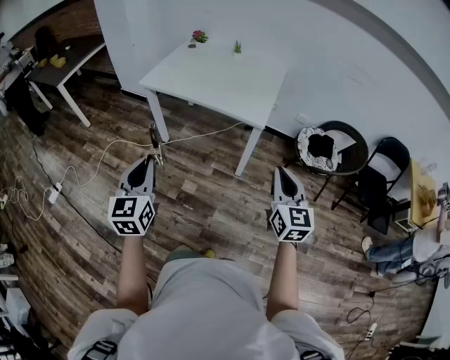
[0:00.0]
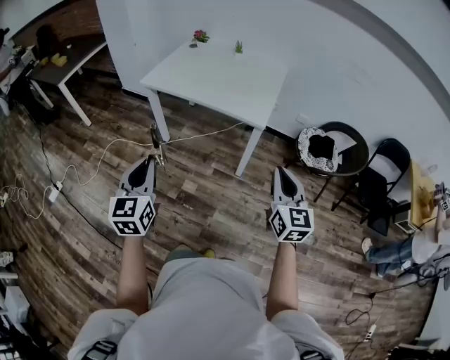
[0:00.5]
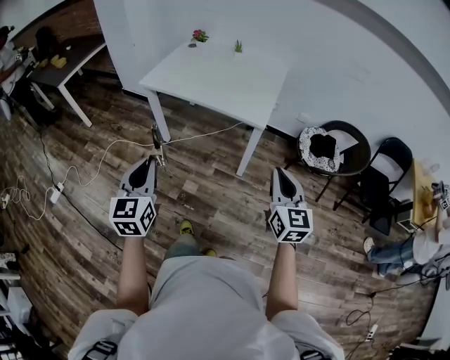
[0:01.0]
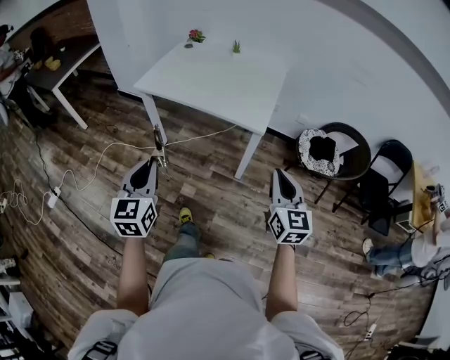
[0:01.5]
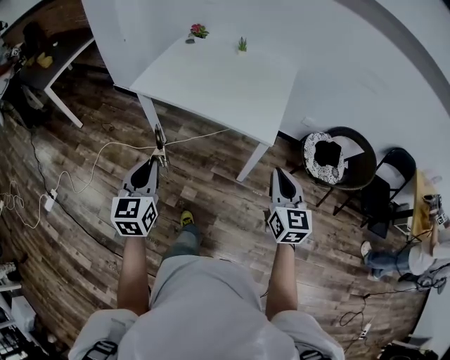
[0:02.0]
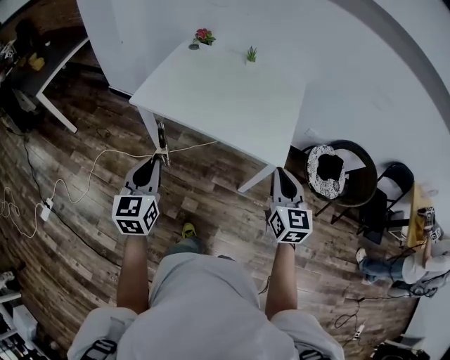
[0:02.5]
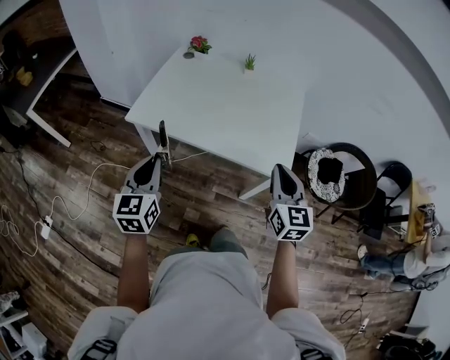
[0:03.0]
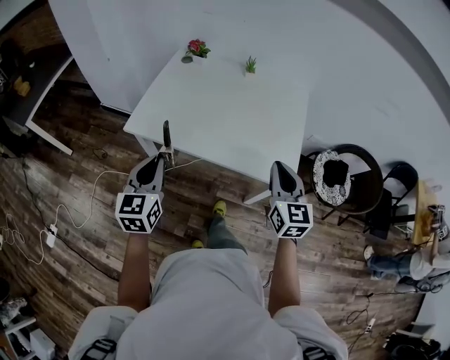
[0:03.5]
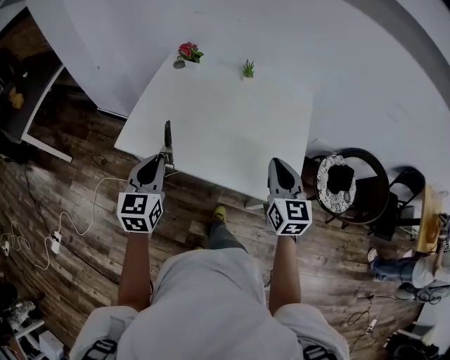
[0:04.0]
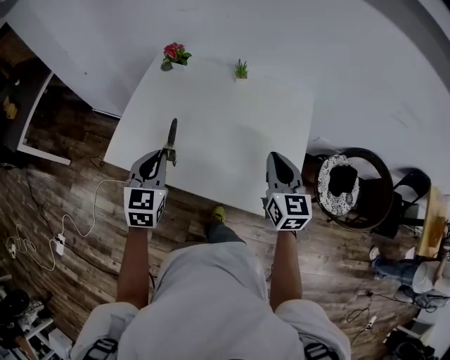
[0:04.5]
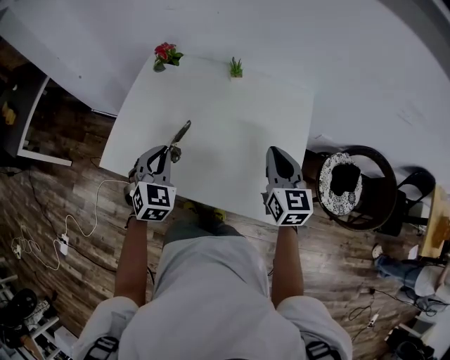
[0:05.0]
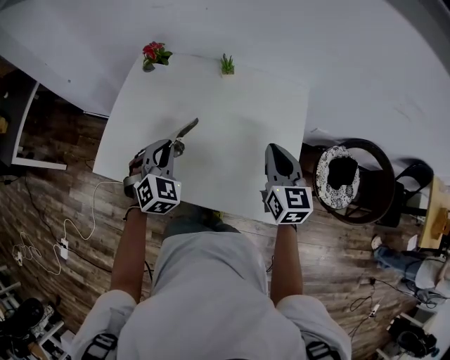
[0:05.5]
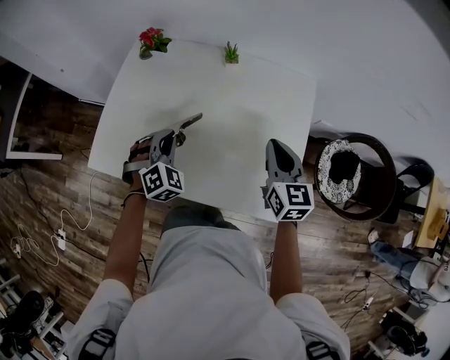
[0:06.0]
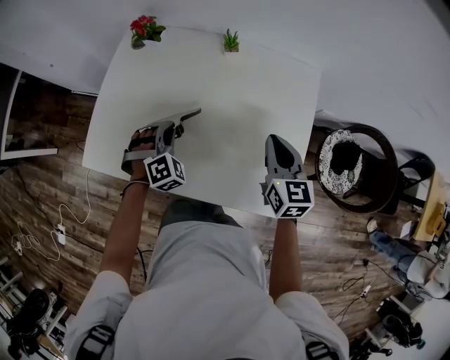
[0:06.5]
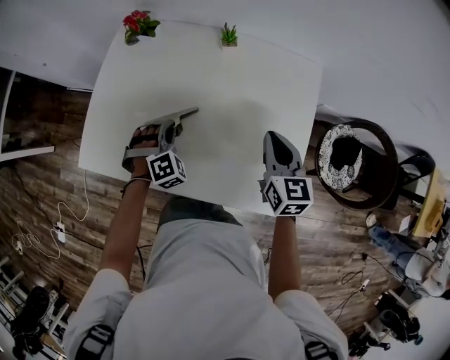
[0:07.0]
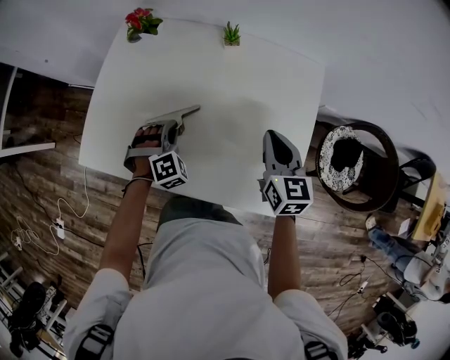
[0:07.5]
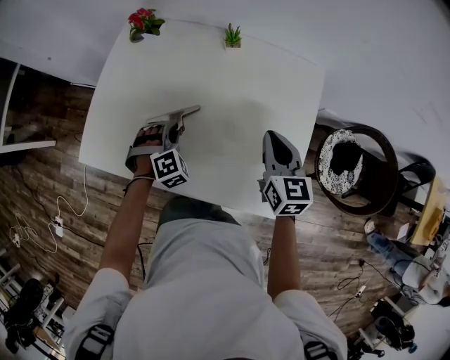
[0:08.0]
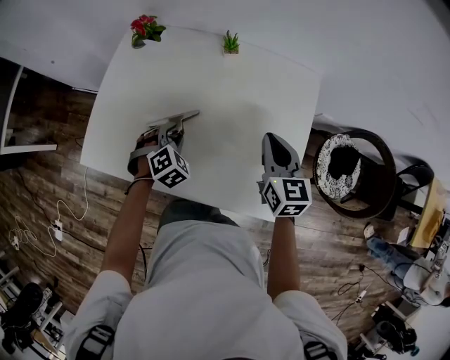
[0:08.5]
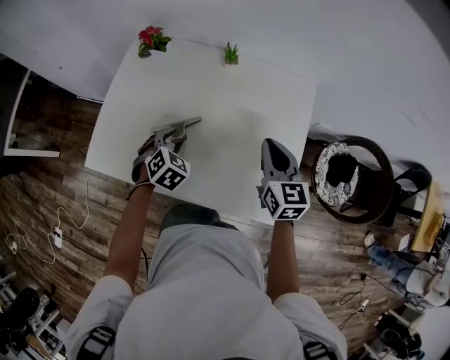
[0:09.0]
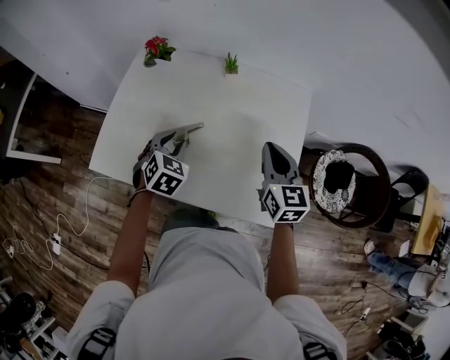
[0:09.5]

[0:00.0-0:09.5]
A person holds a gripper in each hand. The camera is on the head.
0:00.0 to 0:02.0: The grippers both shift forward by approximately 15 cm.
0:02.0 to 0:04.0: The two grippers go about 40 cm forward.
0:04.0 to 0:05.5: The right gripper goes roughly 15 cm forward and to the right. Meanwhile the left gripper travels forward, to the right and downward by approximately 25 cm, and rotates around the line of its fingers by approximately 40 degrees, clockwise from behind.
0:05.5 to 0:07.5: The right gripper moves downward, roughly 5 cm. The left gripper travels downward by about 15 cm, and swivels some 30 degrees.
0:07.5 to 0:09.5: The left gripper moves upward, some 10 cm, swivels some 40 degrees, and opens its fingers, while the right gripper shifts roughly 5 cm upward.

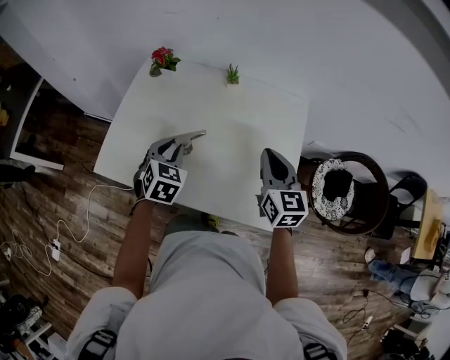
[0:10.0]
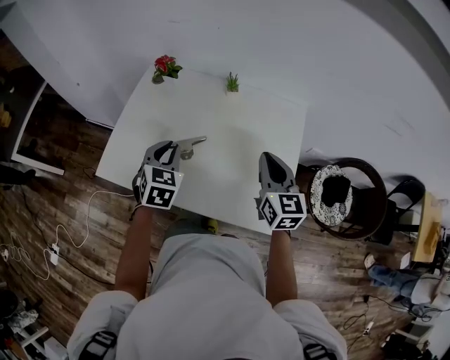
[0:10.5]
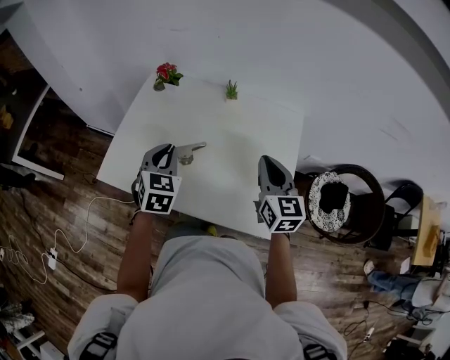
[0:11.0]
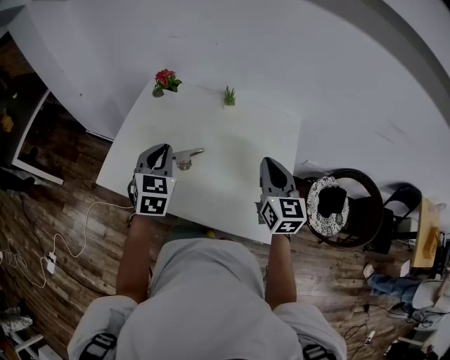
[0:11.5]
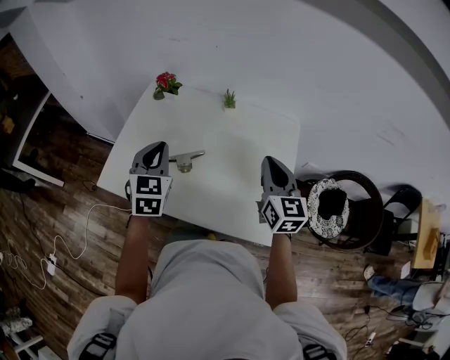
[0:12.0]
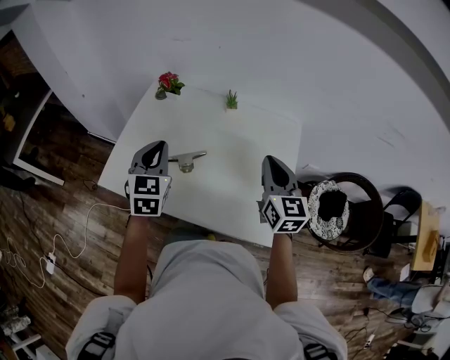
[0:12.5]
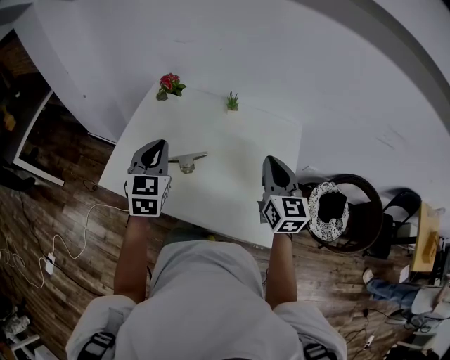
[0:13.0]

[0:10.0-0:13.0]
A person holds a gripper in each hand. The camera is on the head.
0:10.0 to 0:11.5: The left gripper shifts roughly 10 cm upward.
0:11.5 to 0:13.0: The grippers move only a little.

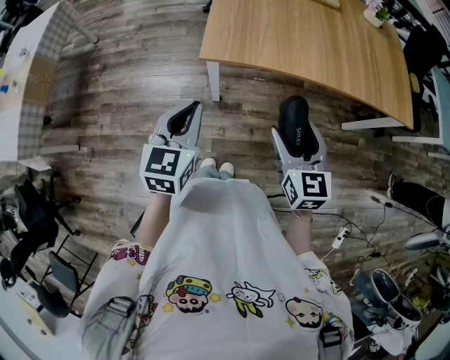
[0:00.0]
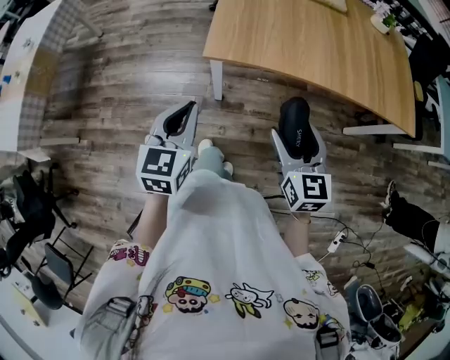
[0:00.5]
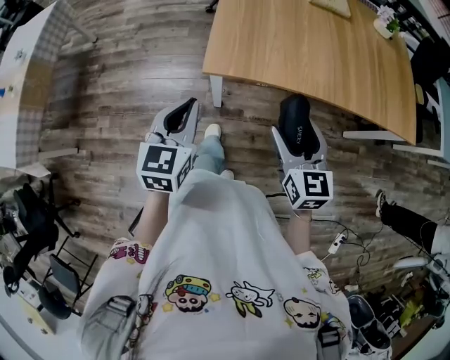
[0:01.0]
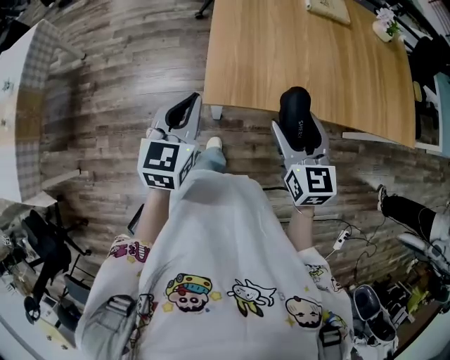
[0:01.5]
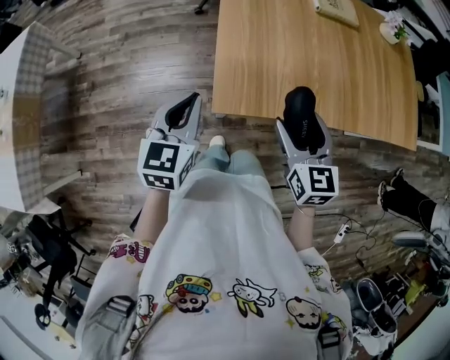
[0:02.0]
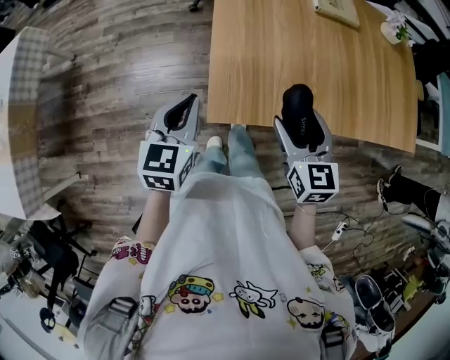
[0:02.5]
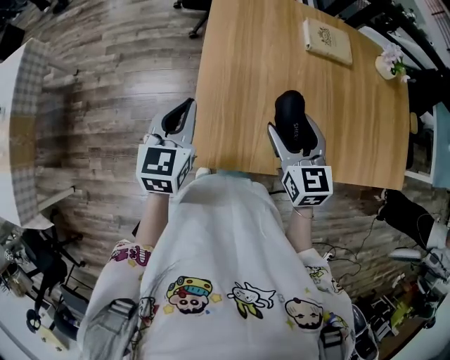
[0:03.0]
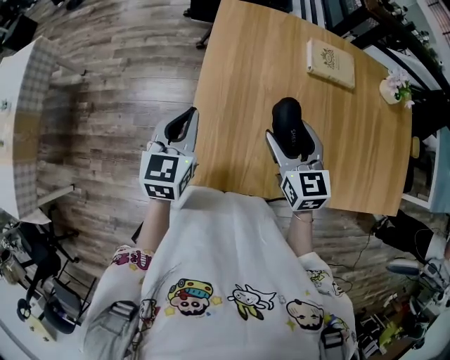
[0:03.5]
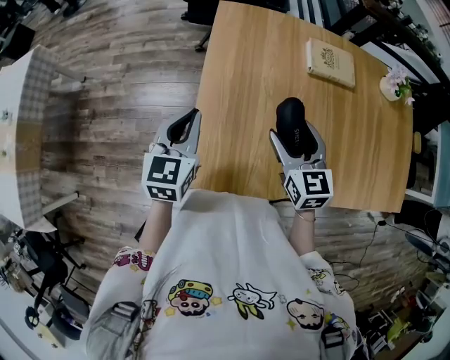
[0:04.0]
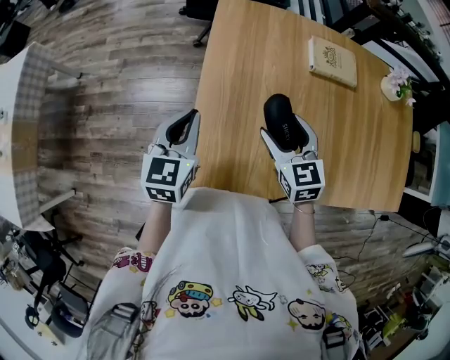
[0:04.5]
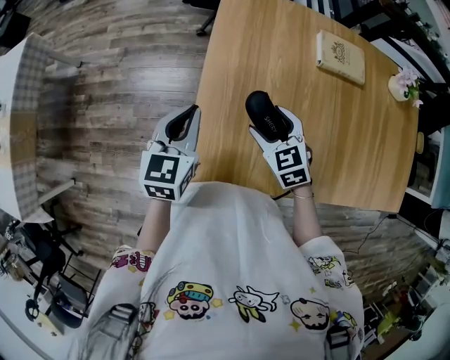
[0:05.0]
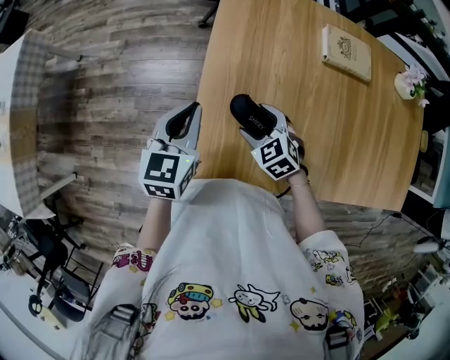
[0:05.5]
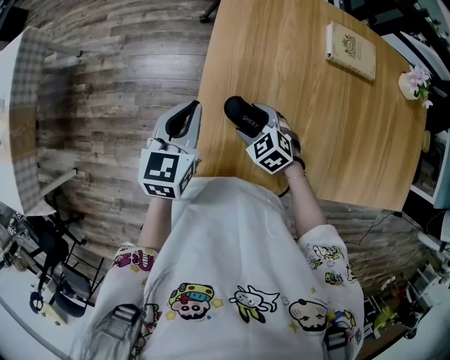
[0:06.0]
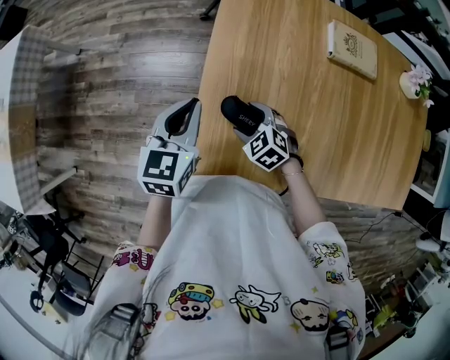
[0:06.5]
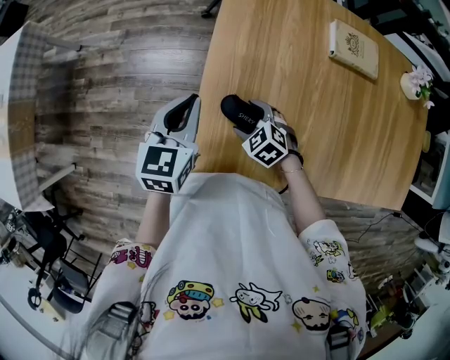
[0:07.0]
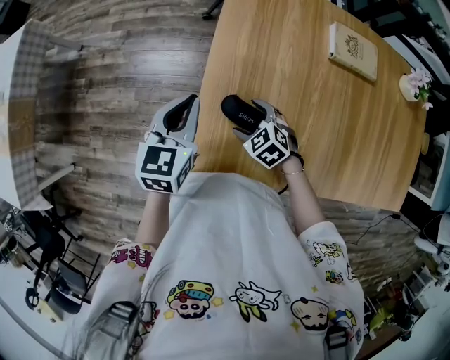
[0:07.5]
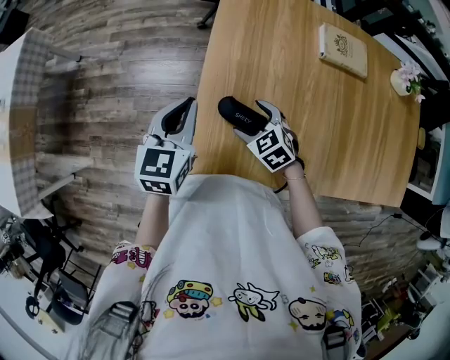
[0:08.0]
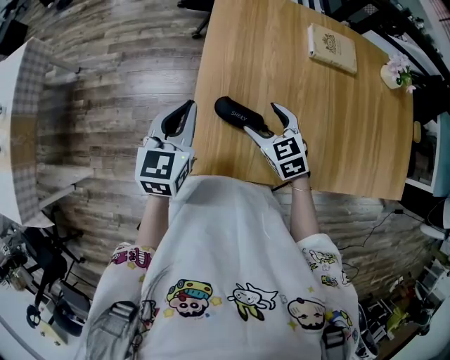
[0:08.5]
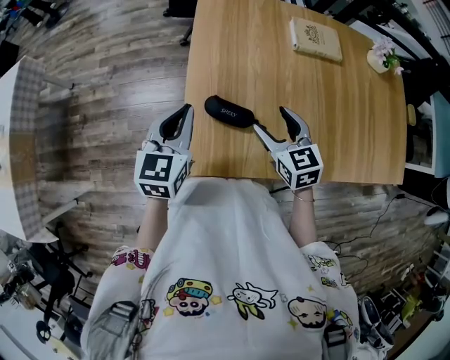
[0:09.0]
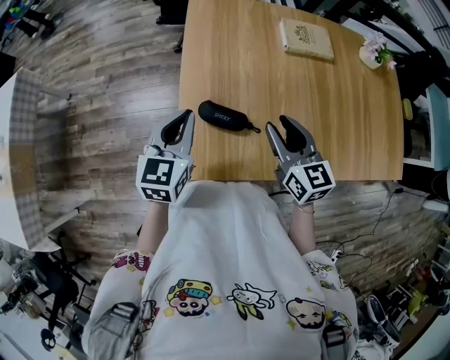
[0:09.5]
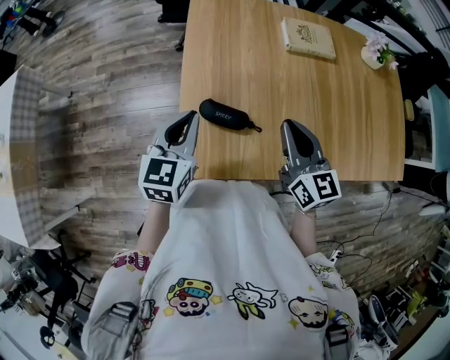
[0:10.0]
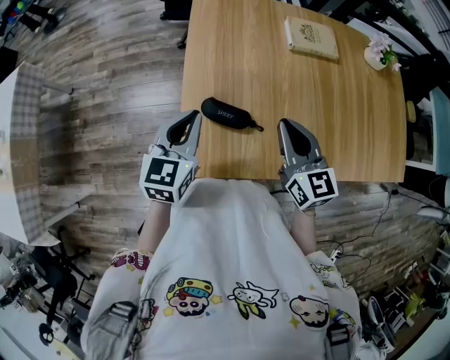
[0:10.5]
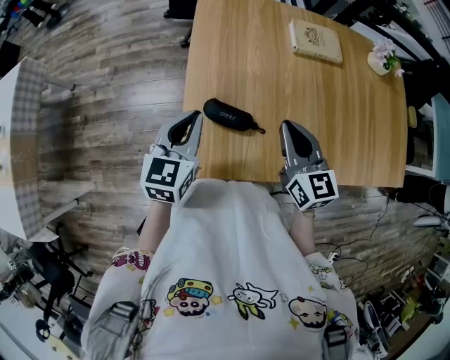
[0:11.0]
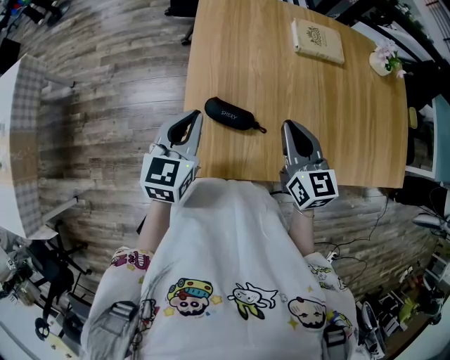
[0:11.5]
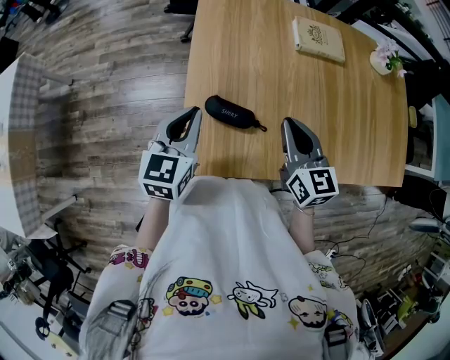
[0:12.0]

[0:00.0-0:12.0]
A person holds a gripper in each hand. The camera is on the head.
0:00.0 to 0:02.0: The two grippers go approximately 25 cm forward.
0:02.0 to 0:04.0: Both grippers move forward, approximately 25 cm.
0:04.0 to 0:06.0: The right gripper goes roughly 20 cm downward and to the left, and tilts its fingers approximately 30 degrees downward.
0:06.0 to 0:08.0: The grippers move only a little.
0:08.0 to 0:10.0: The left gripper shifts roughly 5 cm to the right. The right gripper is displaced upward and to the right by some 25 cm, tips its fingers upward by about 40 degrees, and closes up.
0:10.0 to 0:12.0: The grippers make only small movements.

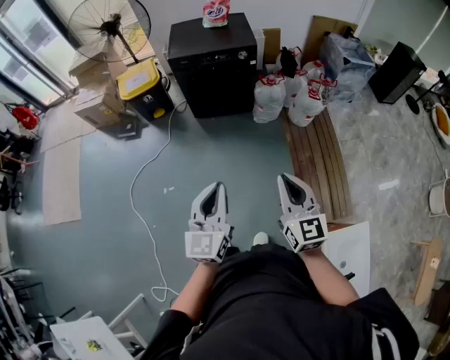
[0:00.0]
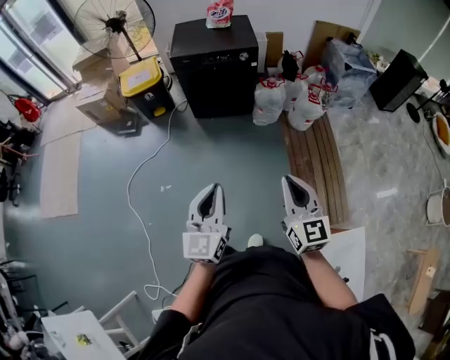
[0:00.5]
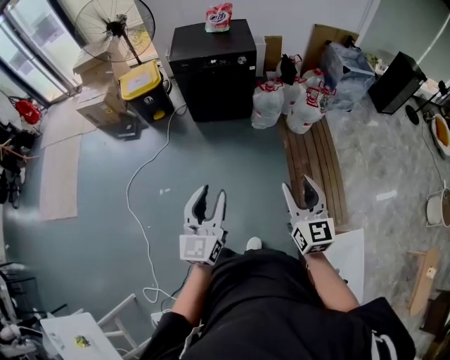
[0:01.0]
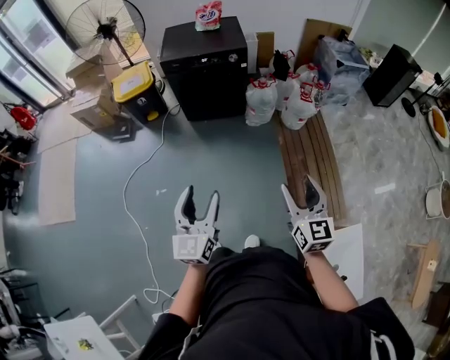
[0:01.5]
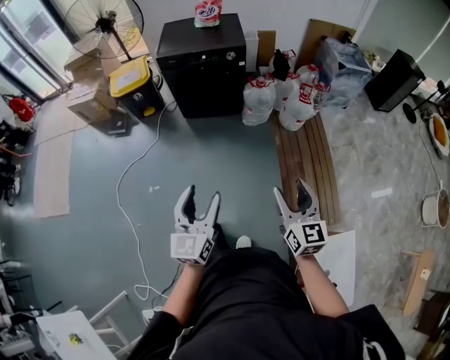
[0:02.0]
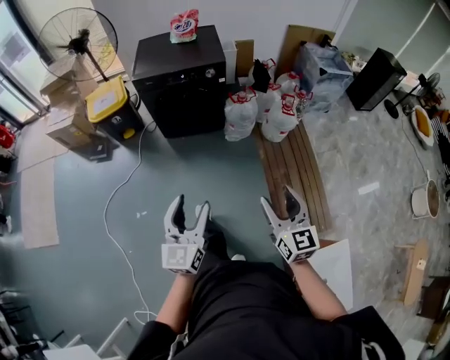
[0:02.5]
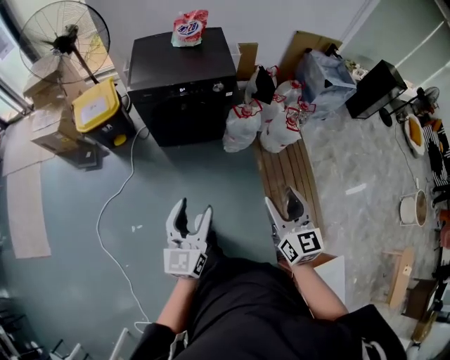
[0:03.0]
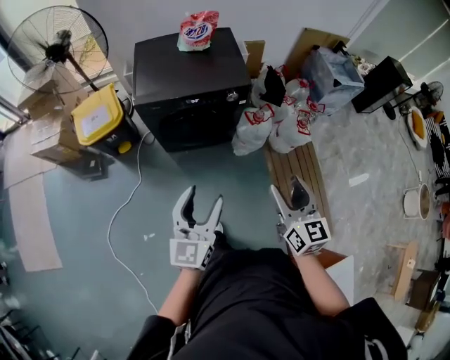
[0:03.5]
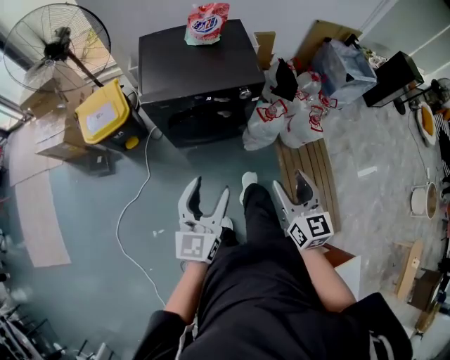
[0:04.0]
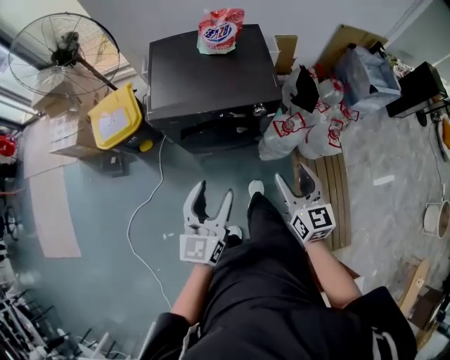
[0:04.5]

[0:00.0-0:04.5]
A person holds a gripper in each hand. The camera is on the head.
0:00.0 to 0:02.0: The right gripper heads to the right and downward, covering approximately 15 cm, and opens up; the left gripper is displaced to the right by roughly 5 cm, and opens up.
0:02.0 to 0:04.5: The two grippers travel together, forward, some 60 cm.
